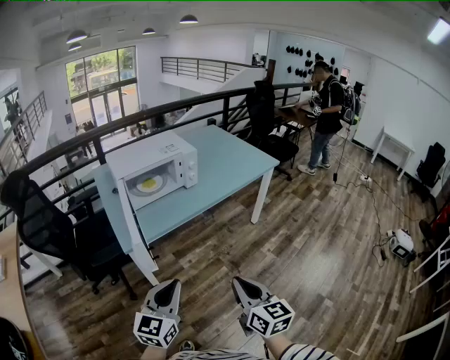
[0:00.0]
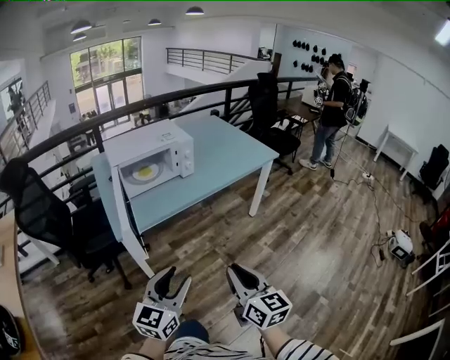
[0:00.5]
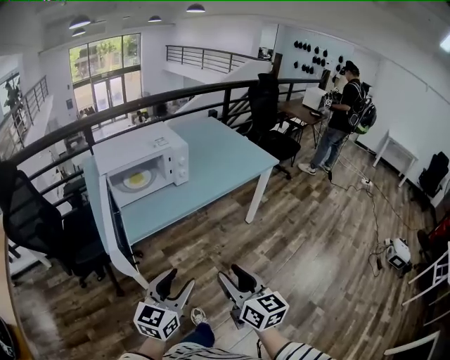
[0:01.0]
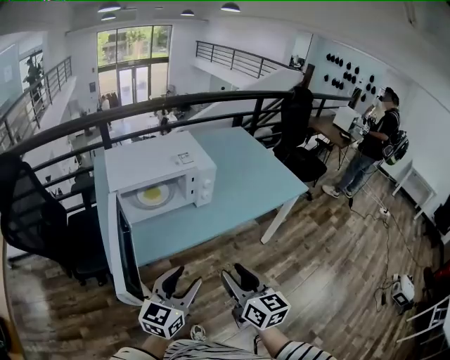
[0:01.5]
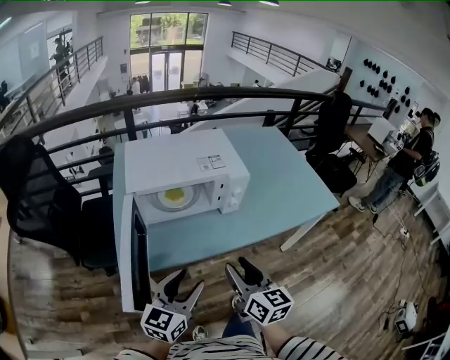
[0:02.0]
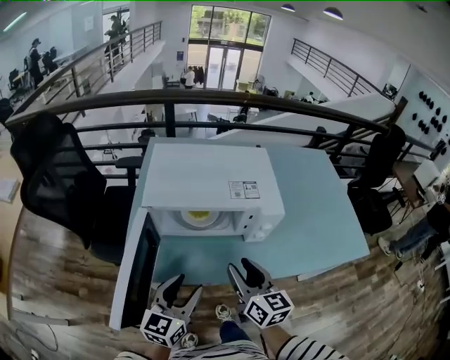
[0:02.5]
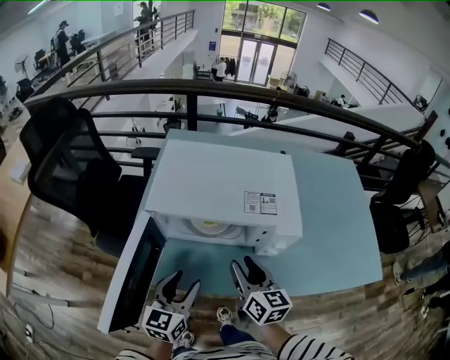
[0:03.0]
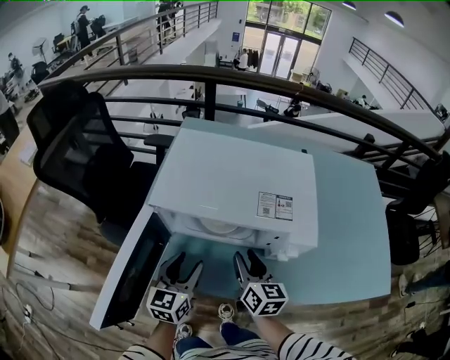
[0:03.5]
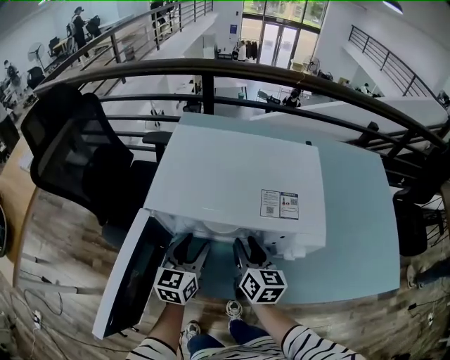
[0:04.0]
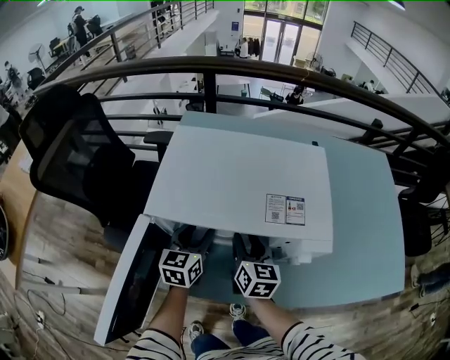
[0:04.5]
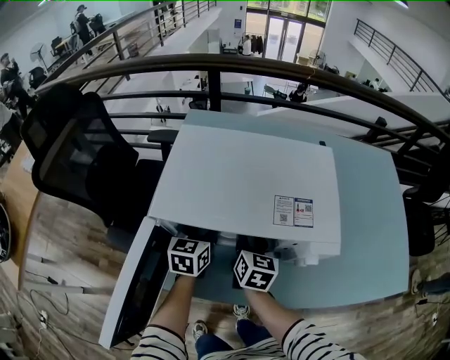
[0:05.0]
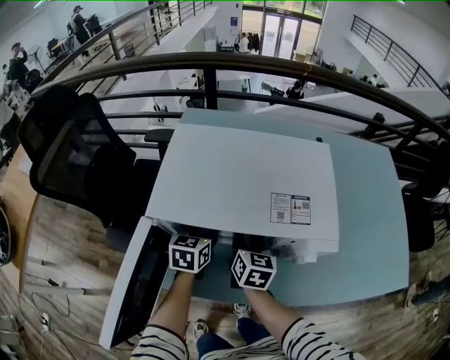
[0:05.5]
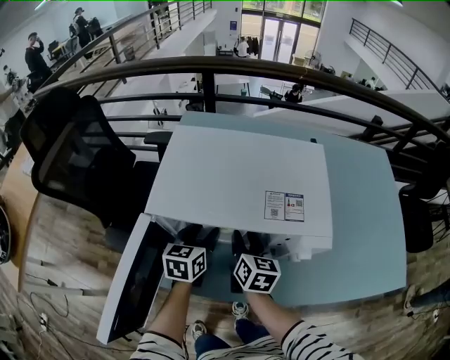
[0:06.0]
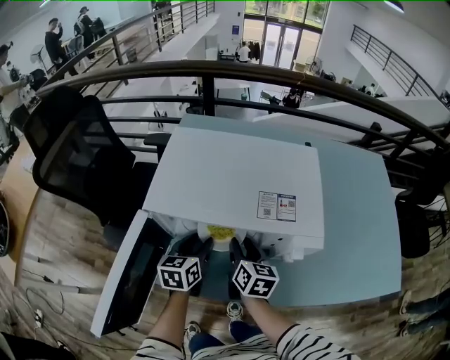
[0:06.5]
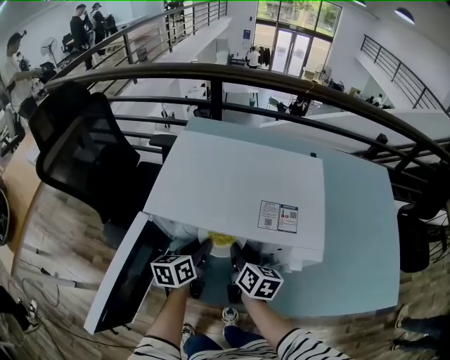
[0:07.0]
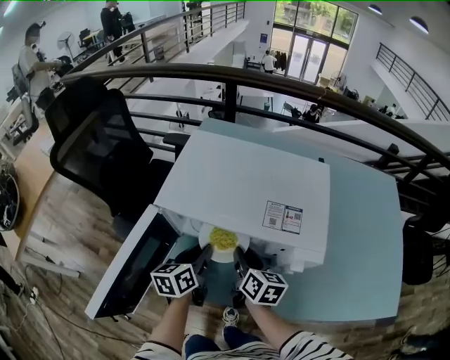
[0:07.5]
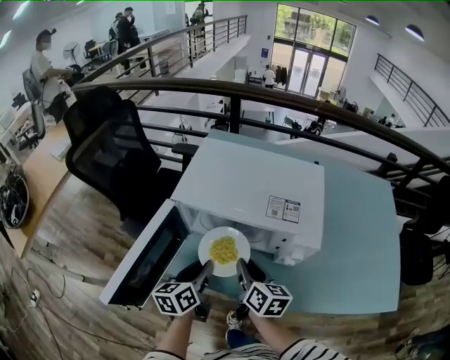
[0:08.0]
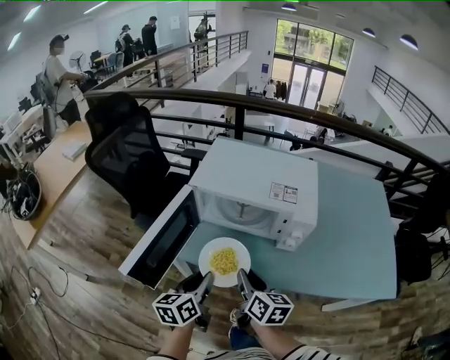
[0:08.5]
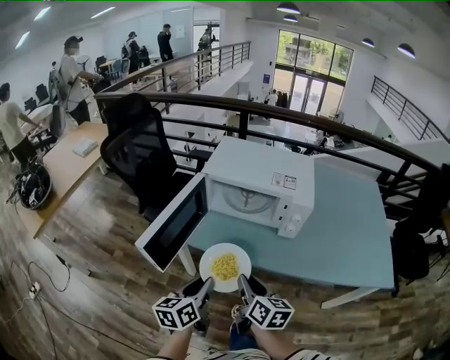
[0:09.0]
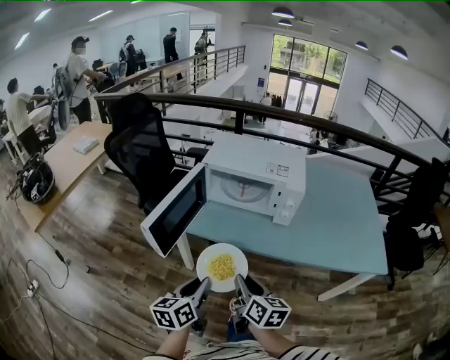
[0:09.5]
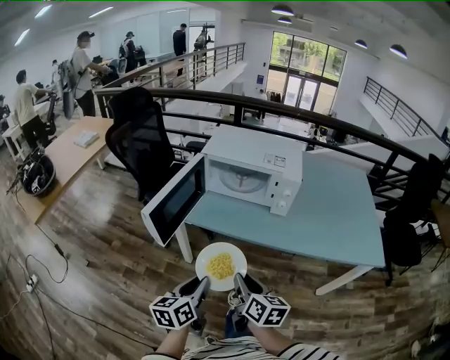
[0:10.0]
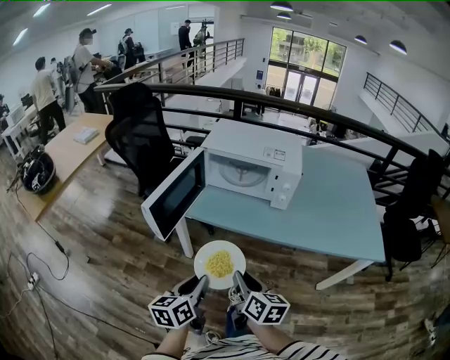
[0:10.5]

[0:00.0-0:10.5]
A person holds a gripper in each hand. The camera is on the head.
0:00.0 to 0:02.0: Both grippers move forward, approximately 35 cm. The left gripper opens its fingers, while the right gripper opens.
0:02.0 to 0:04.0: The left gripper changes place by some 30 cm, and rotates approximately 40 degrees; the right gripper ends up approximately 30 cm from where it was.
0:04.0 to 0:06.5: The left gripper moves about 10 cm forward and comes back.
0:06.5 to 0:08.5: The left gripper is displaced backward by roughly 25 cm, and closes, while the right gripper is displaced backward and upward by approximately 20 cm.
0:08.5 to 0:10.5: The two grippers go roughly 25 cm backward.

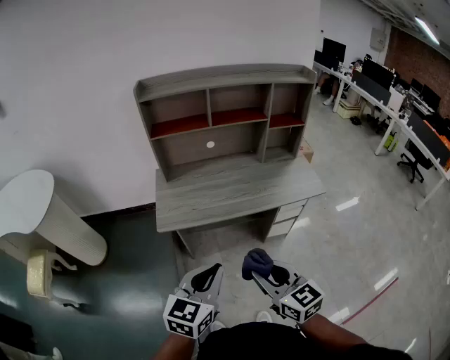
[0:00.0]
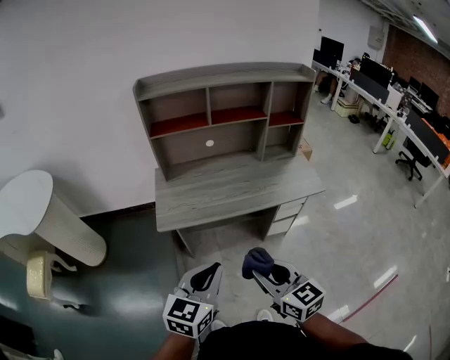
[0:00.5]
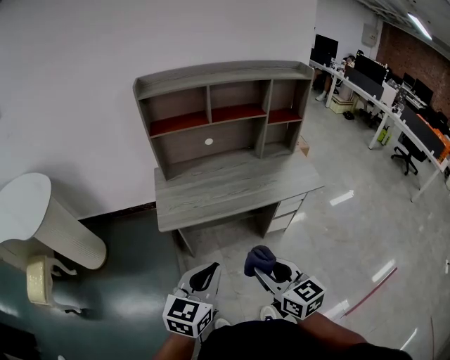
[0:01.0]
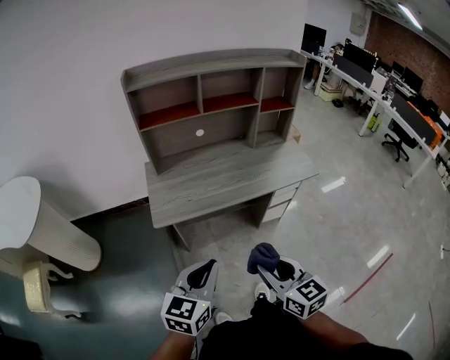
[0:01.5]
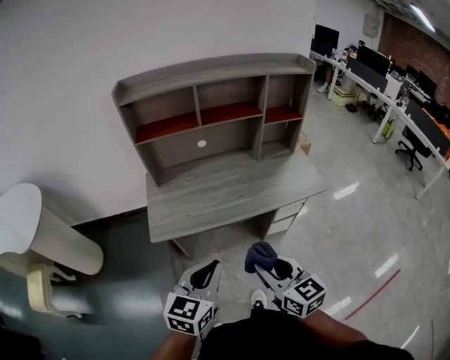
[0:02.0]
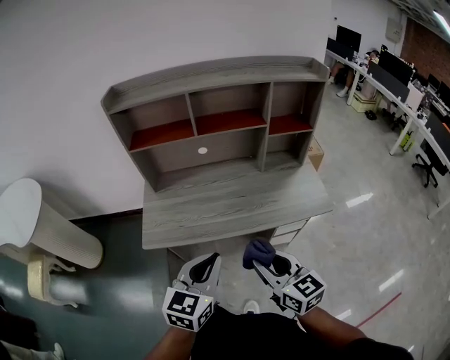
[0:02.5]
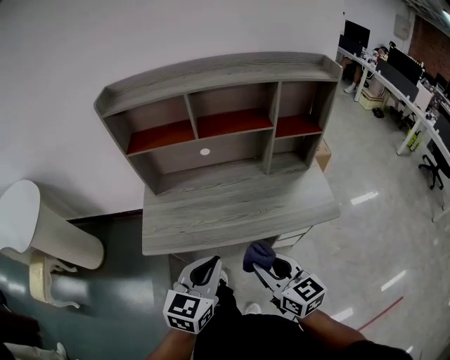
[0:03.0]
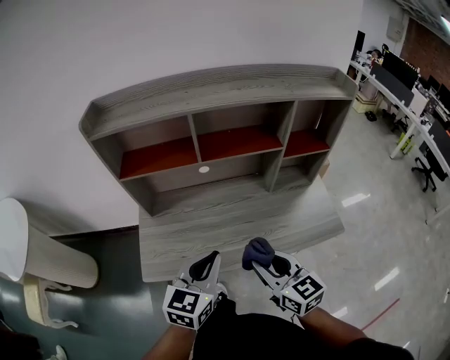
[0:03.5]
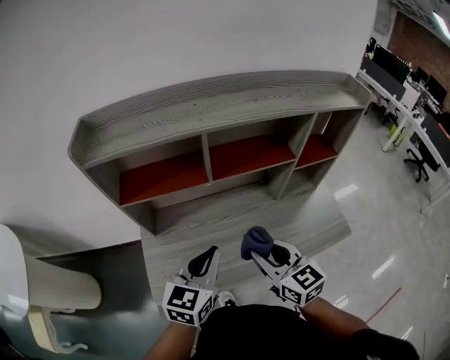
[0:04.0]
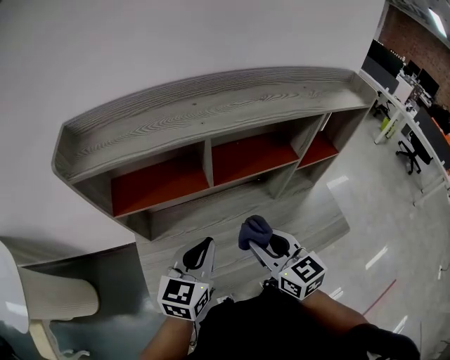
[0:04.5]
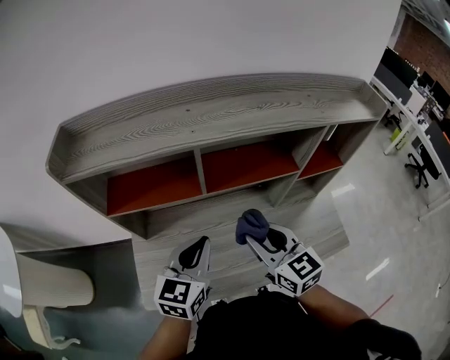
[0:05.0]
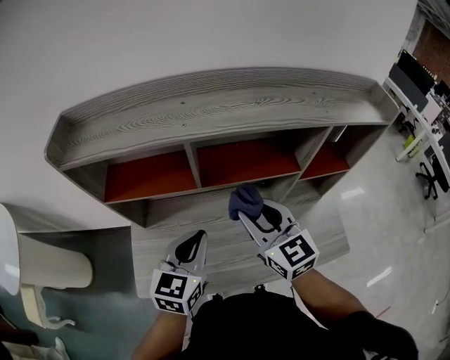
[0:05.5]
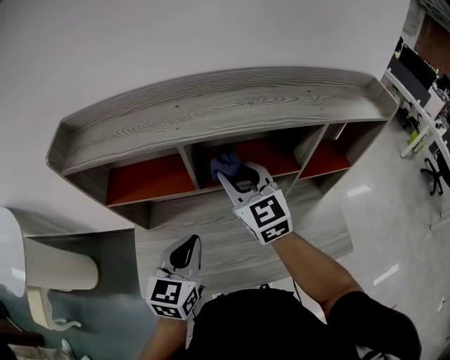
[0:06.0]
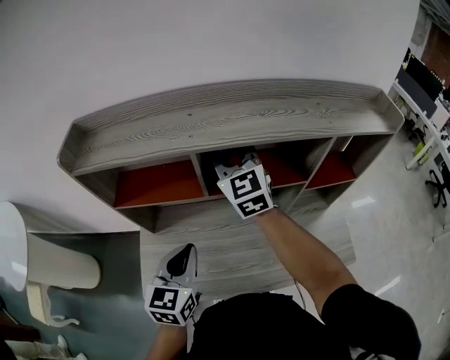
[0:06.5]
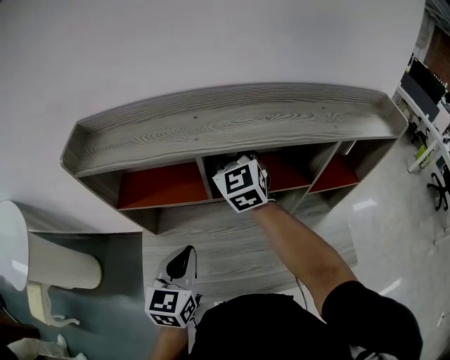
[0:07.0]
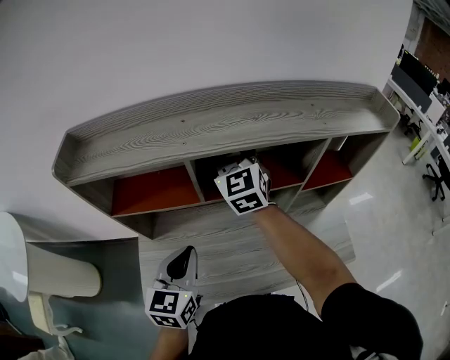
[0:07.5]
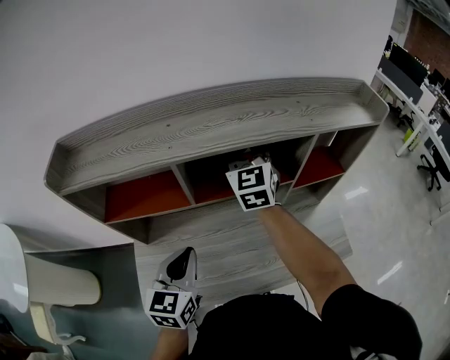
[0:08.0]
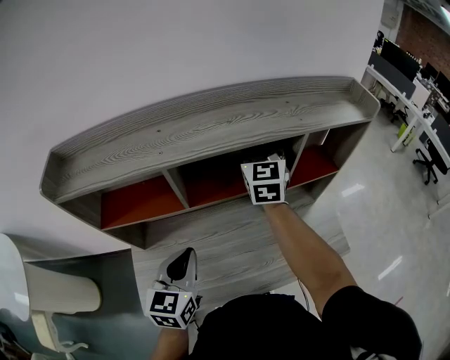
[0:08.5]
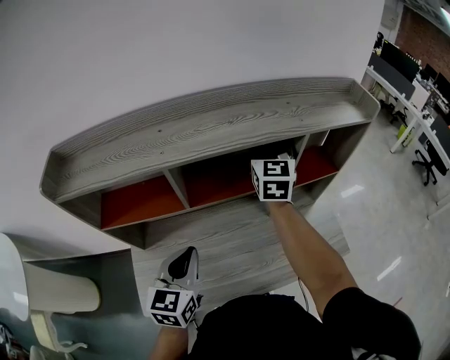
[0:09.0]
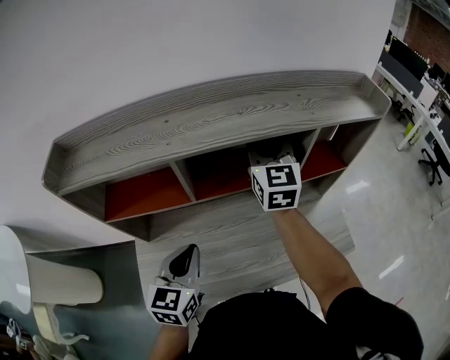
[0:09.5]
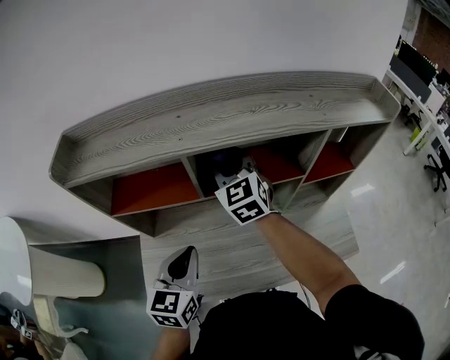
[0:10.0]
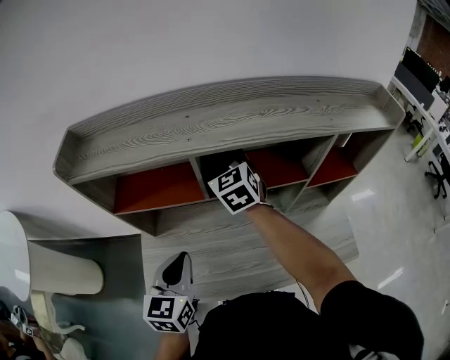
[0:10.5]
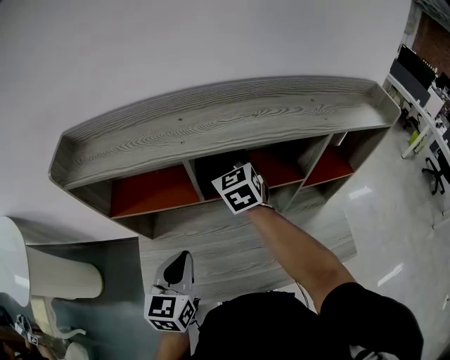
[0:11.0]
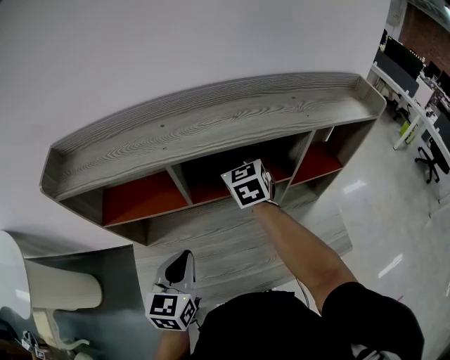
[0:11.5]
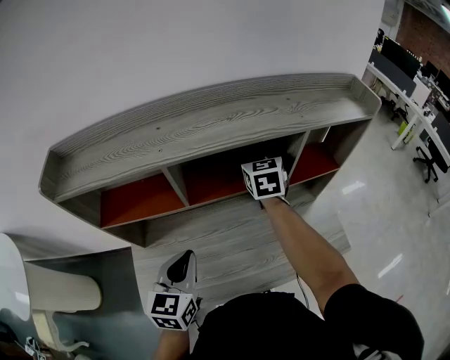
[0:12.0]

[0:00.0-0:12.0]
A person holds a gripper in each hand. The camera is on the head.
0:00.0 to 0:02.0: Both grippers travel together forward, roughly 10 cm.
0:02.0 to 0:04.0: Both grippers travel together forward, approximately 35 cm.
0:04.0 to 0:06.0: The right gripper goes some 25 cm forward and upward, and swivels some 20 degrees. The left gripper goes some 5 cm forward.
0:06.0 to 0:08.0: The right gripper heads forward and to the right, covering some 10 cm, and changes its angle by roughly 20 degrees.
0:08.0 to 0:10.0: The right gripper goes some 5 cm to the left.
0:10.0 to 0:12.0: The right gripper shifts about 15 cm to the right, and rotates approximately 30 degrees.

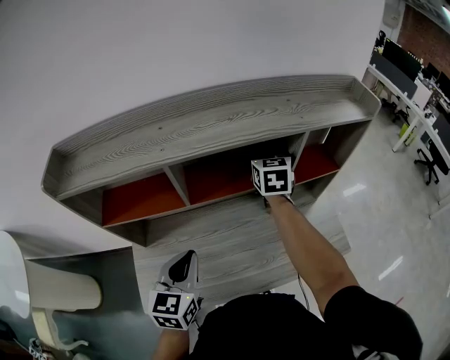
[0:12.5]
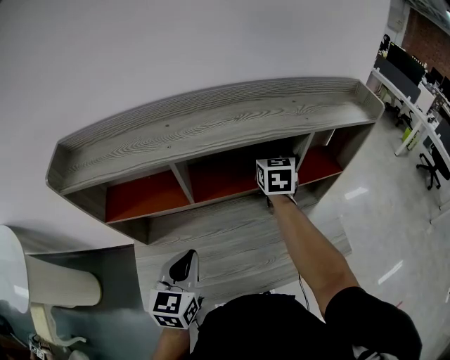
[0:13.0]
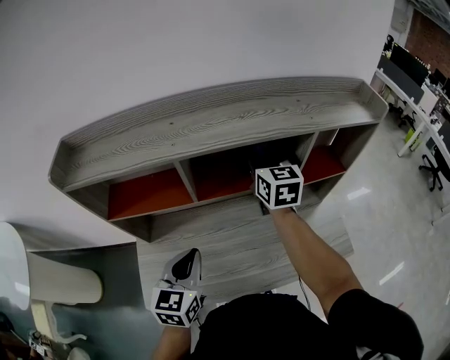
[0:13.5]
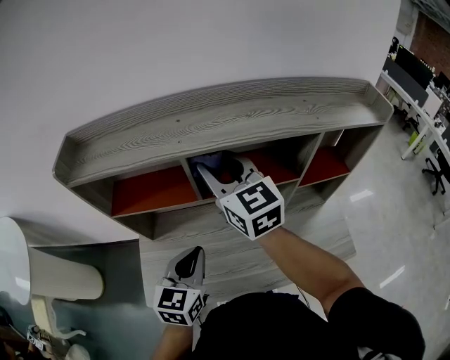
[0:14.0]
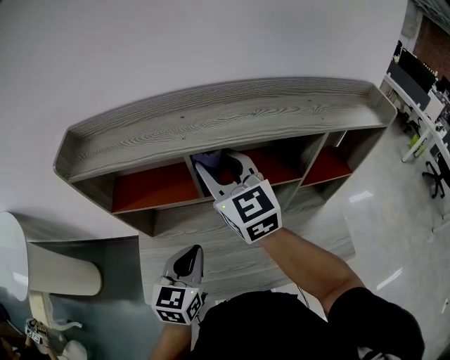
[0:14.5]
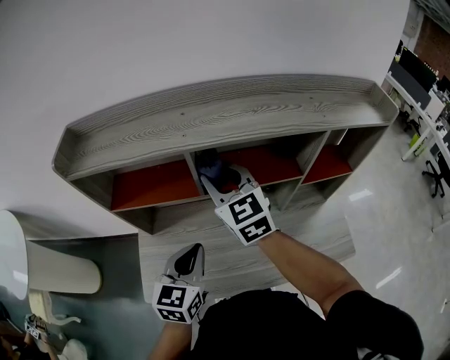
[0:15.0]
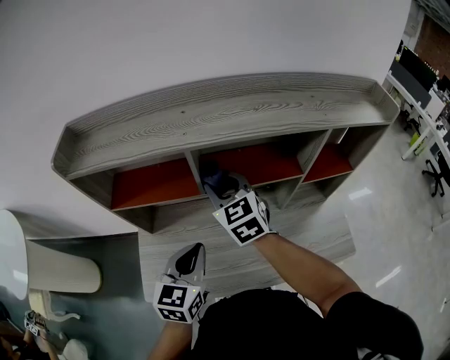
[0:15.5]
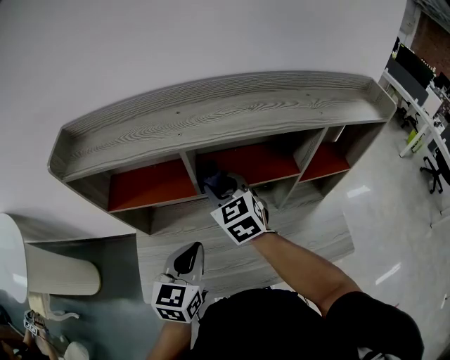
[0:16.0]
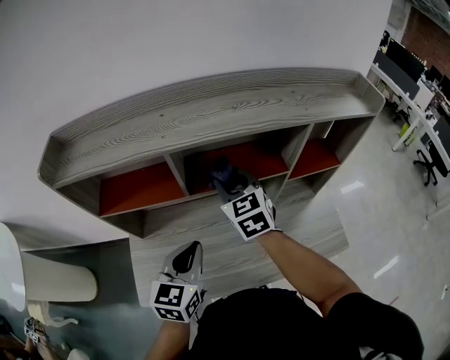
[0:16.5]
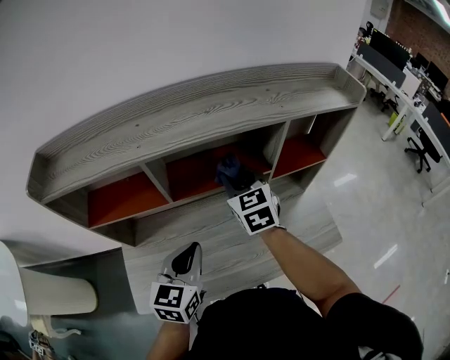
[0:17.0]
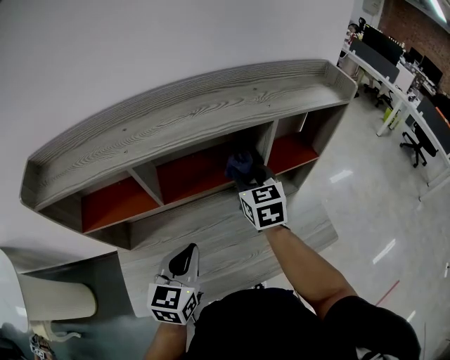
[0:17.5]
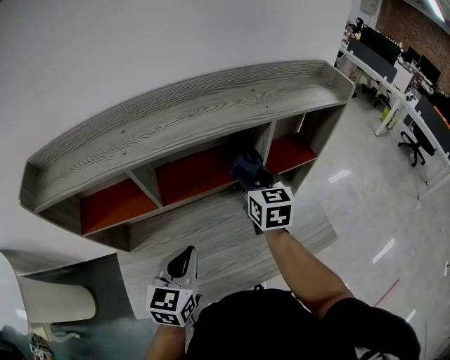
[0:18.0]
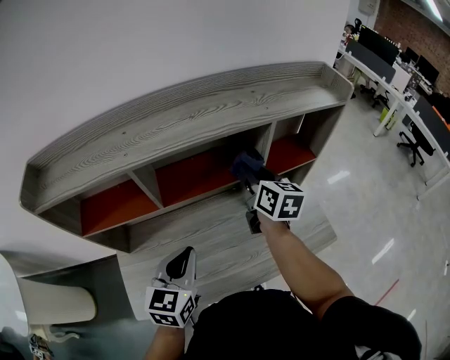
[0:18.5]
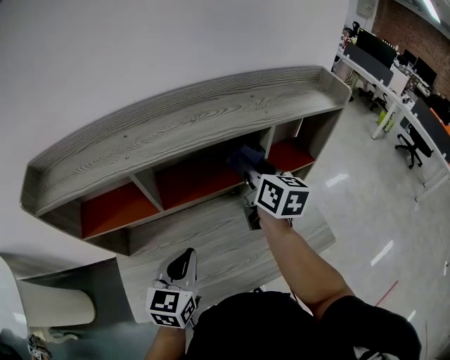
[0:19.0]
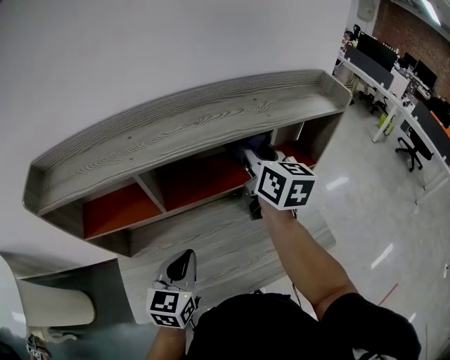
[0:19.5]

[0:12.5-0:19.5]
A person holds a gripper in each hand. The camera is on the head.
0:12.5 to 0:14.5: The right gripper travels to the left, backward and upward by about 25 cm, and turns by some 40 degrees.
0:14.5 to 0:16.0: The right gripper is displaced downward by about 15 cm, and changes its angle by roughly 20 degrees.
0:16.0 to 0:17.5: The left gripper travels to the right by some 10 cm. The right gripper goes approximately 20 cm to the right, and rotates about 30 degrees.
0:17.5 to 0:19.5: The right gripper shifts approximately 15 cm upward, and turns by some 30 degrees.
